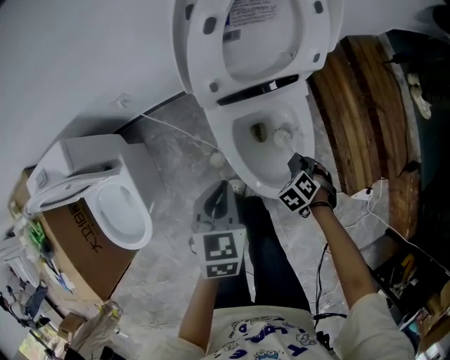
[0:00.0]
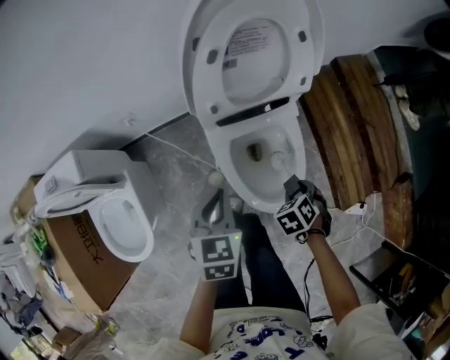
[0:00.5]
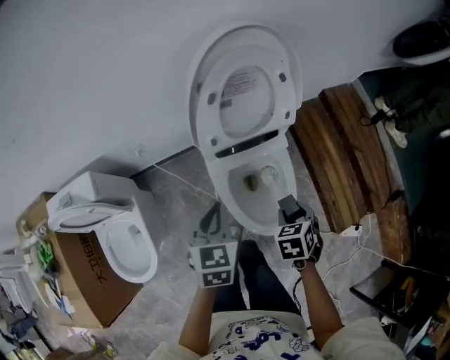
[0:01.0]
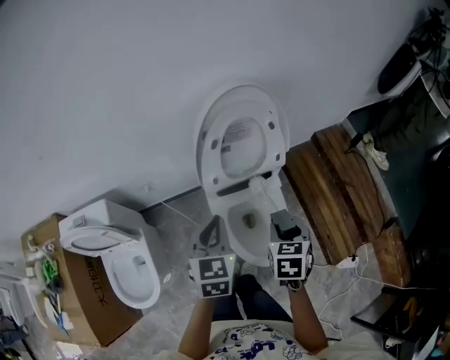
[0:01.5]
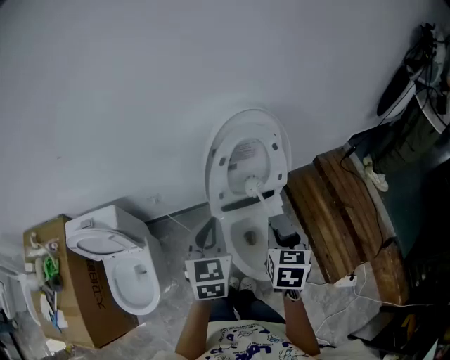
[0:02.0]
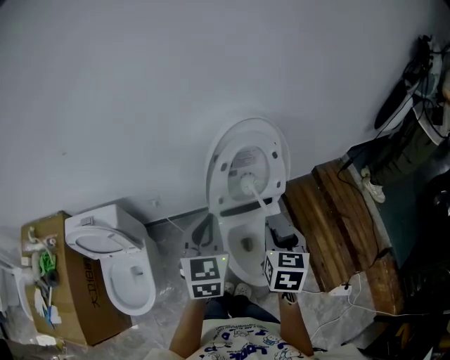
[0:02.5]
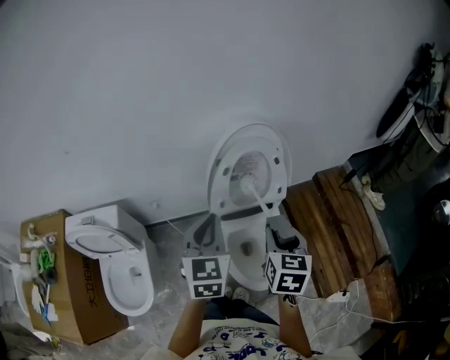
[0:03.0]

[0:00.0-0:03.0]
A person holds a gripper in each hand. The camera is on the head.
0:00.0 to 0:01.5: The right gripper heads upward, covering about 35 cm, and rolls clockwise, seen from behind, by about 50 degrees, while the left gripper heads upward, covering approximately 20 cm.
0:01.5 to 0:03.0: The grippers both shift upward by some 10 cm.

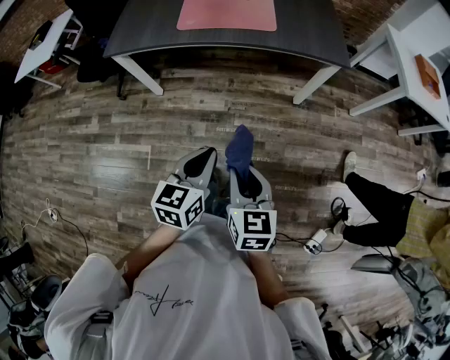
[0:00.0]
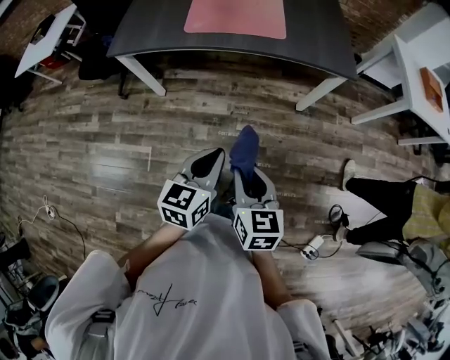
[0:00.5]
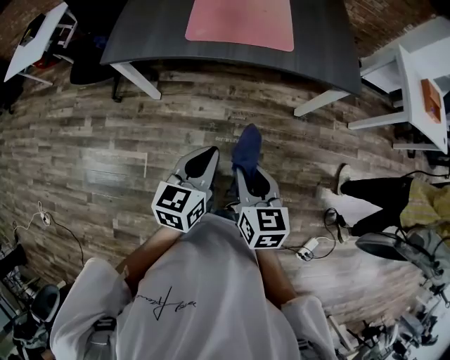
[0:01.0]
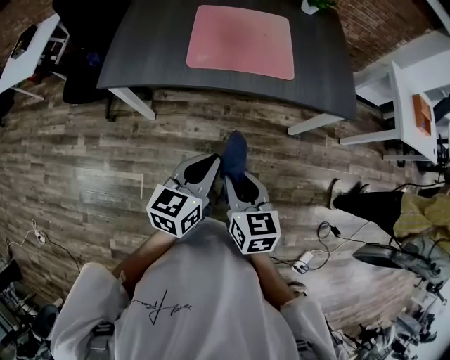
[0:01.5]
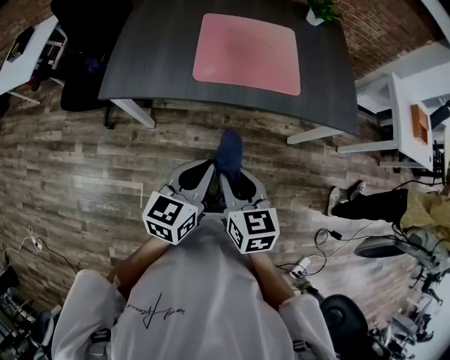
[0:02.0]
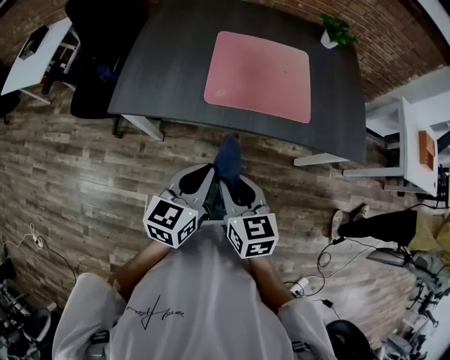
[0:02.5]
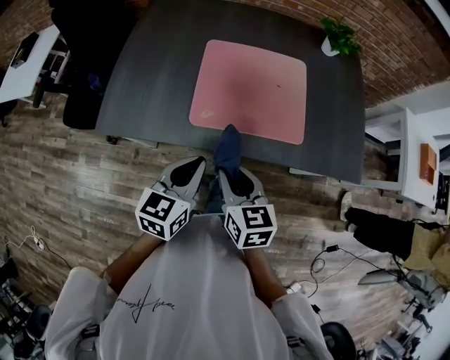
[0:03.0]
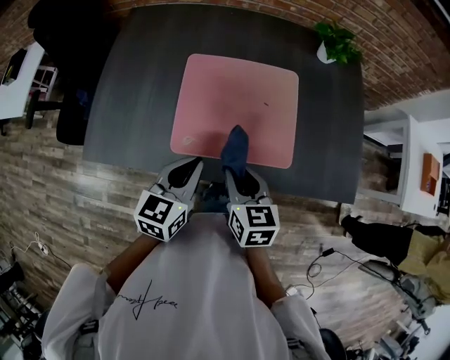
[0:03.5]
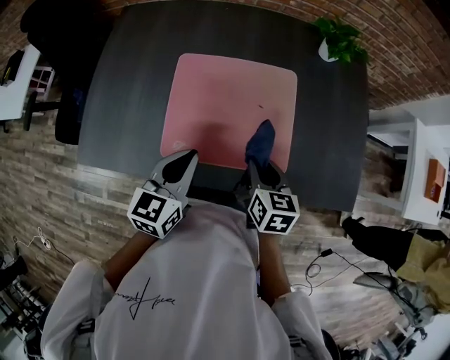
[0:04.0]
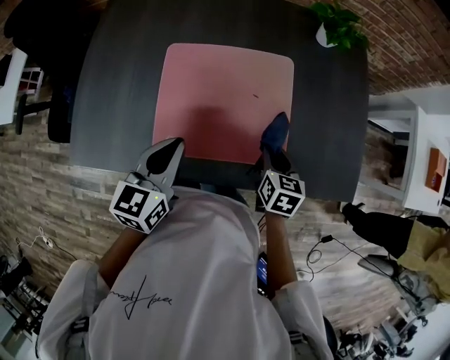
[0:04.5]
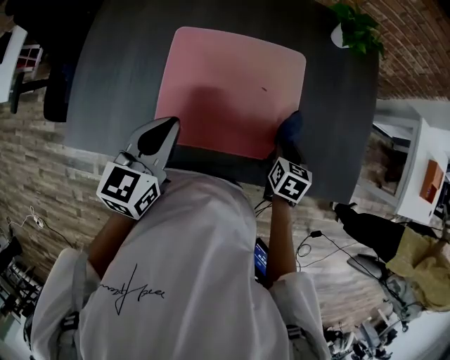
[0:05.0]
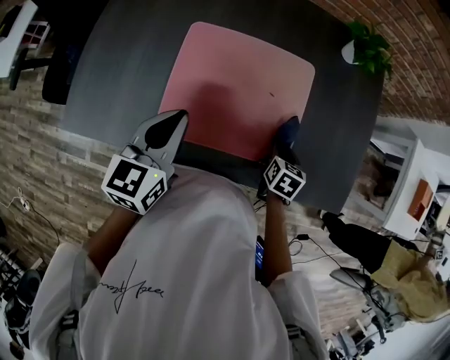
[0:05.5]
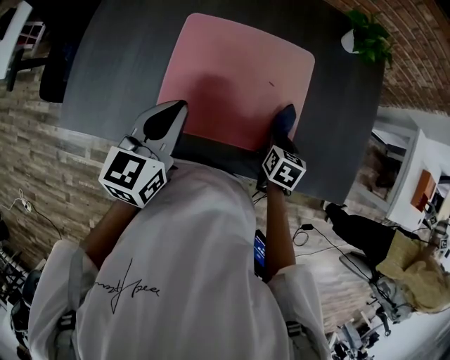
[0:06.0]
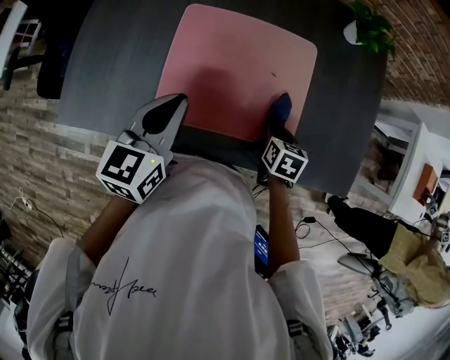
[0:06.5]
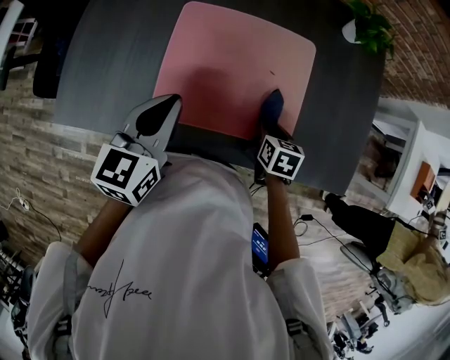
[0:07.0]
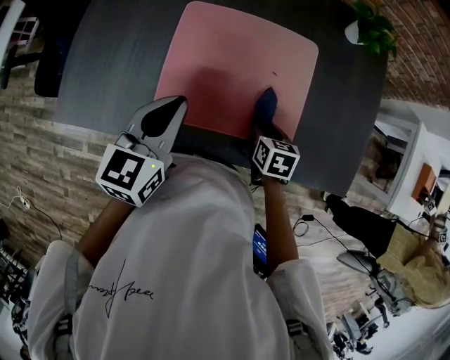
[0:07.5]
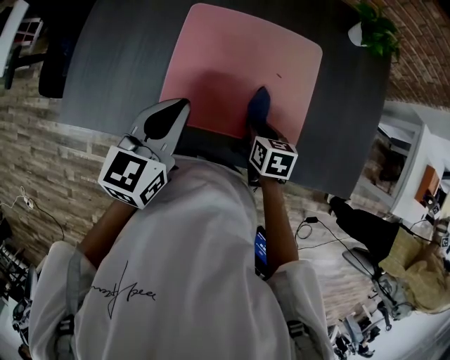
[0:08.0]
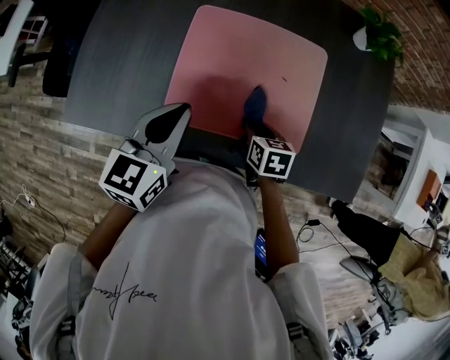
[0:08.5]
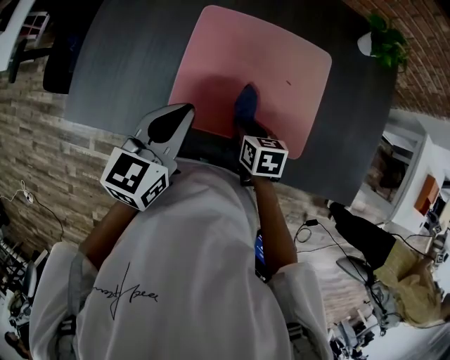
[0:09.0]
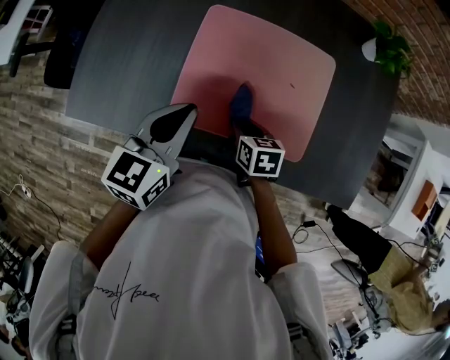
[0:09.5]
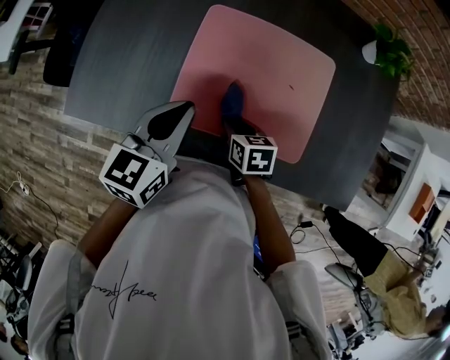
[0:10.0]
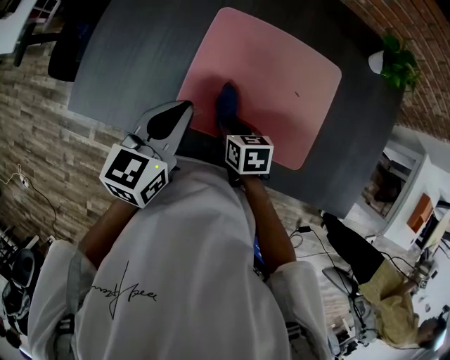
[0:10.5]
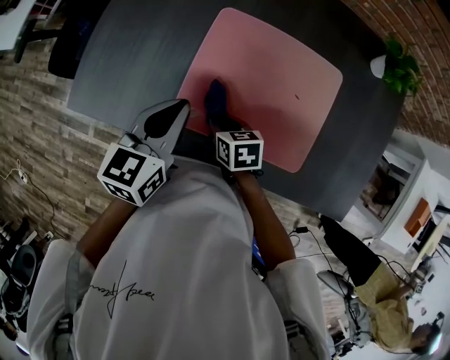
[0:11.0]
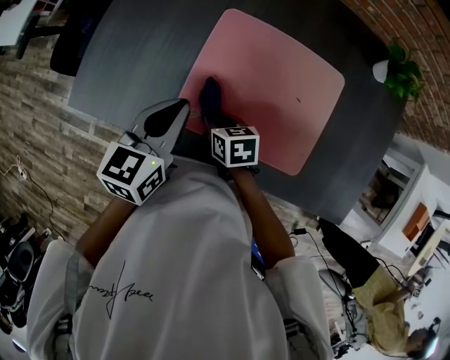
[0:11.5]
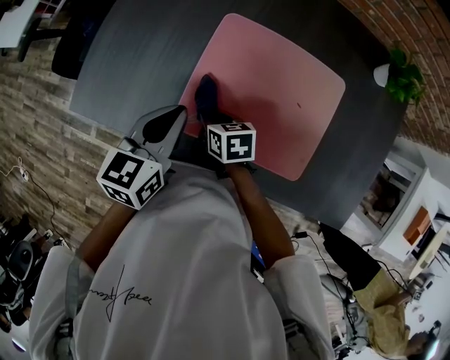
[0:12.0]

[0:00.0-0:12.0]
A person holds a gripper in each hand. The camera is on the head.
0:00.0 to 0:02.0: Both grippers travel together forward and to the left, approximately 30 cm.
0:02.0 to 0:04.0: The right gripper goes roughly 40 cm forward and to the right, while the left gripper goes approximately 35 cm forward.
0:04.0 to 0:06.0: The right gripper heads downward and to the right, covering about 15 cm, and changes its angle by about 20 degrees. The left gripper moves to the left, some 5 cm.
0:06.0 to 0:08.0: The right gripper heads to the left, covering approximately 10 cm.
0:08.0 to 0:10.0: The right gripper moves to the left, approximately 10 cm.
0:10.0 to 0:12.0: The right gripper goes approximately 10 cm to the left and forward.

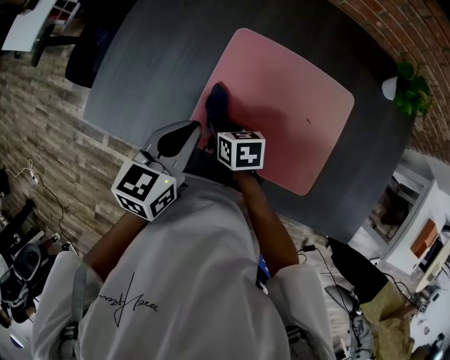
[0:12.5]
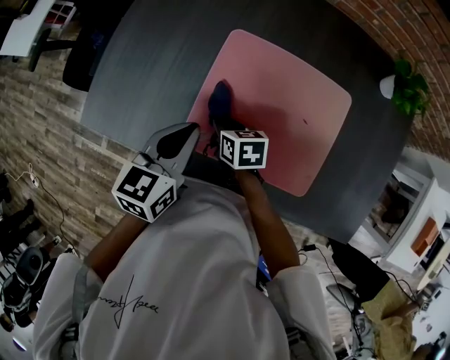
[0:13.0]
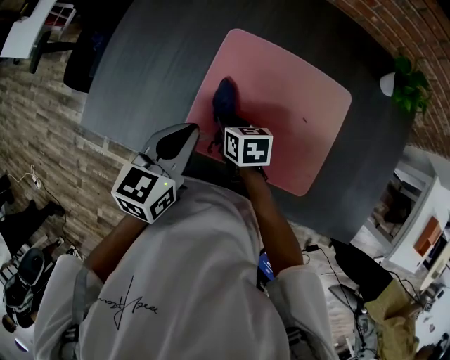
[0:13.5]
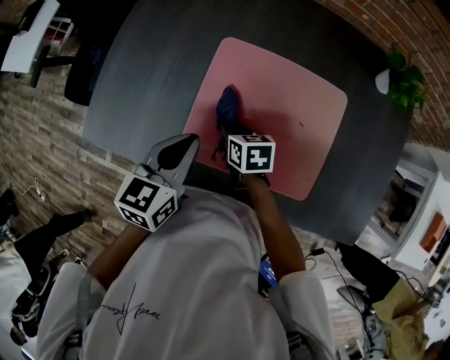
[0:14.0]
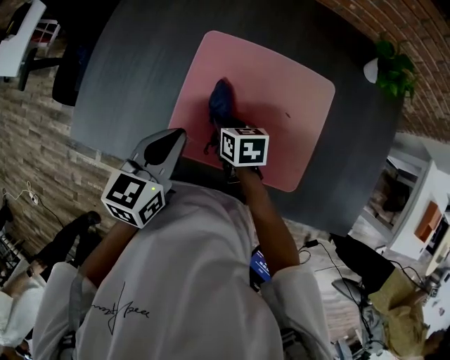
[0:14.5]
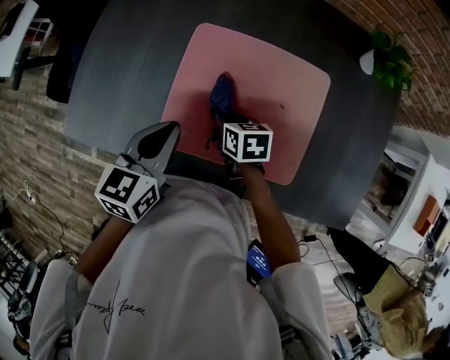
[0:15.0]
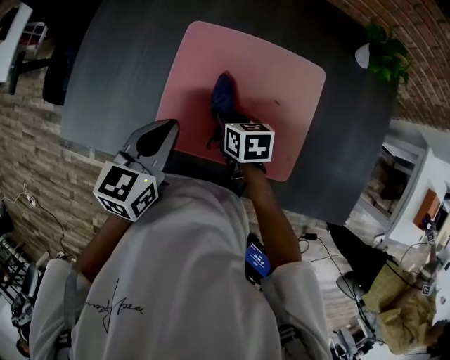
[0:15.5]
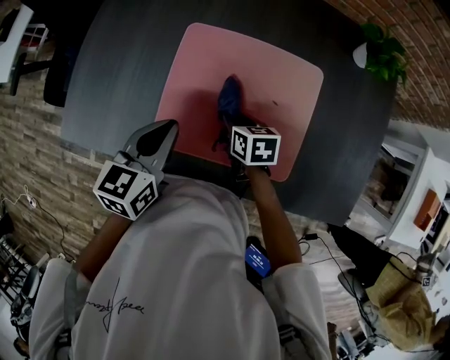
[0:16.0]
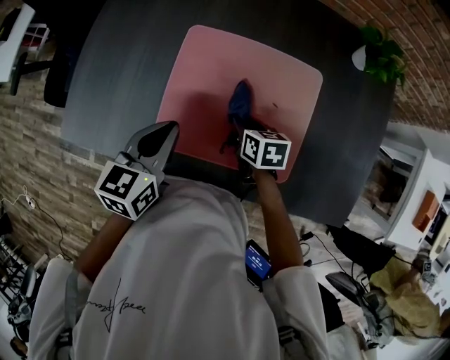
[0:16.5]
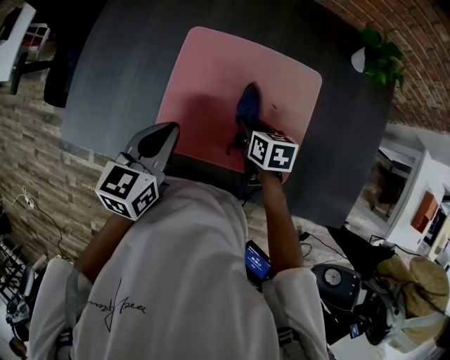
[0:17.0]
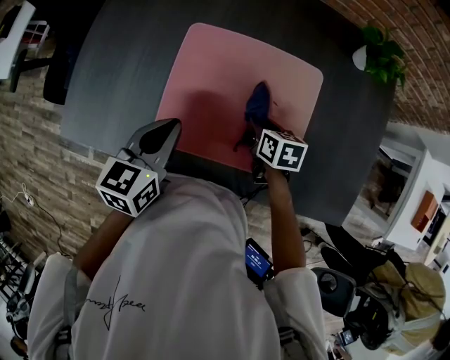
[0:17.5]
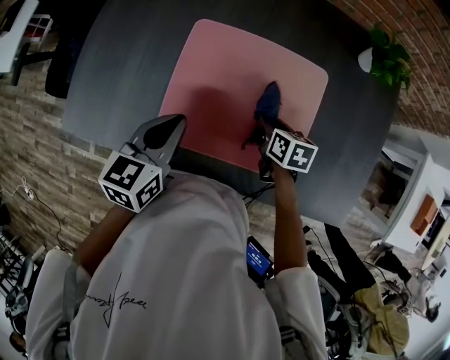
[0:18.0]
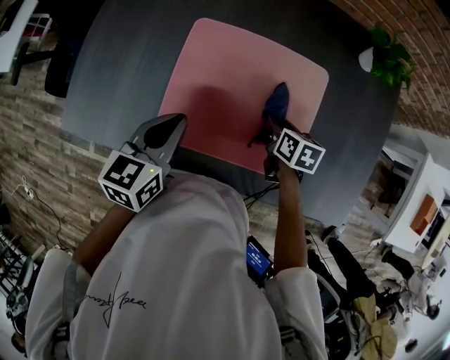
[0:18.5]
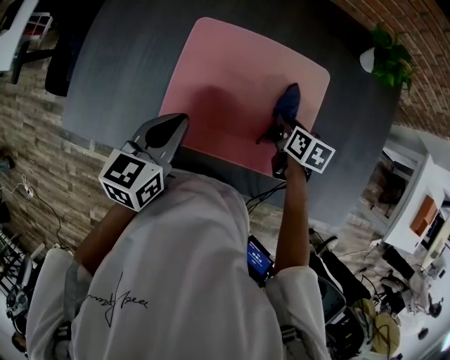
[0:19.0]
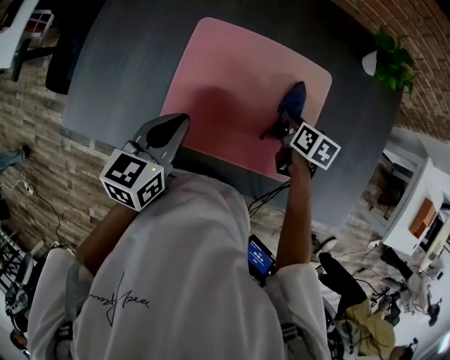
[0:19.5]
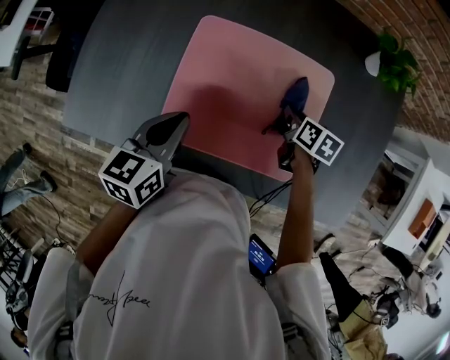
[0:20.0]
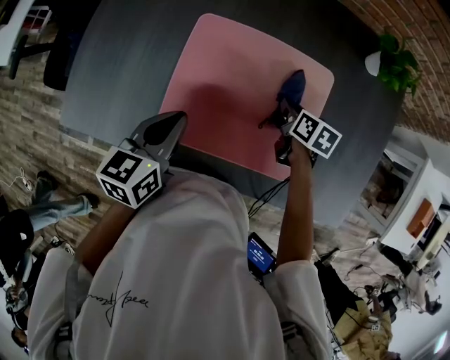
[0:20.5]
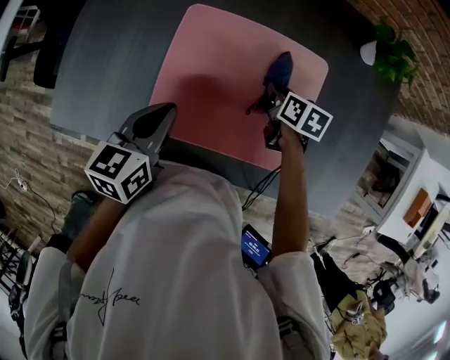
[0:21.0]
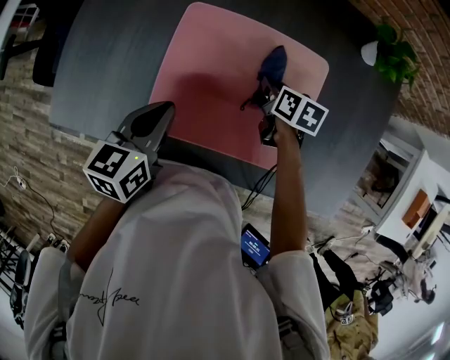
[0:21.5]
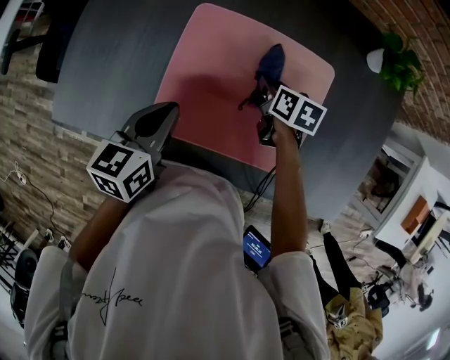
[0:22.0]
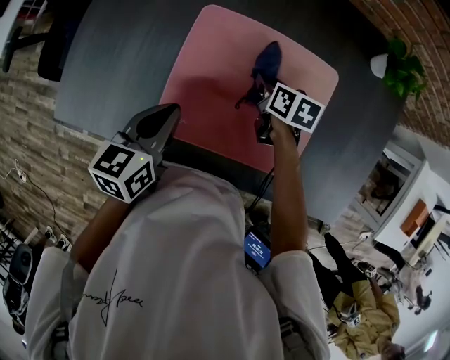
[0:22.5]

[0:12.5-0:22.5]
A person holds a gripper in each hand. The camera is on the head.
0:12.5 to 0:14.5: The right gripper goes roughly 5 cm to the right.
0:14.5 to 0:16.5: The right gripper travels to the right by some 10 cm.
0:16.5 to 0:18.5: The right gripper moves to the right, approximately 10 cm.
0:18.5 to 0:20.5: The right gripper goes roughly 5 cm forward.
0:20.5 to 0:22.5: The right gripper travels to the left by about 10 cm.

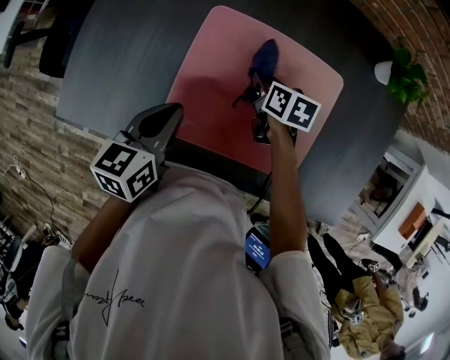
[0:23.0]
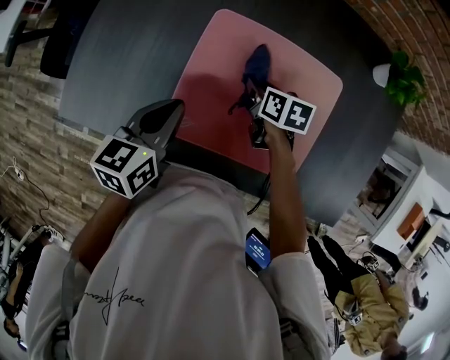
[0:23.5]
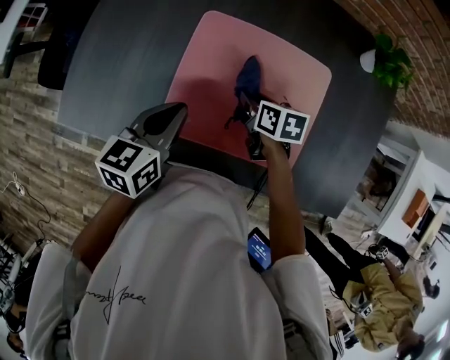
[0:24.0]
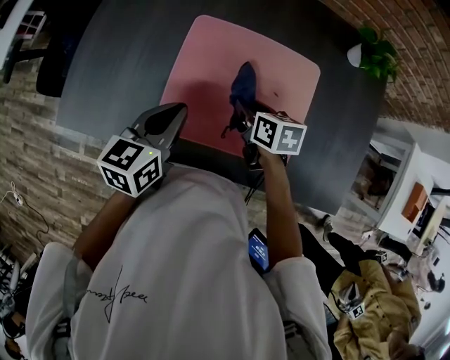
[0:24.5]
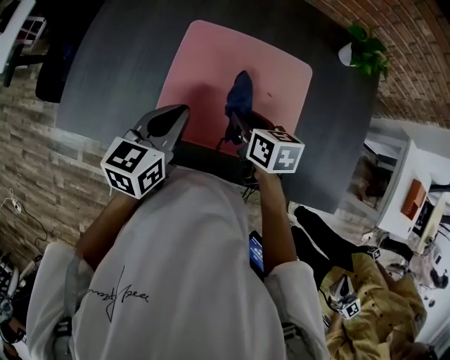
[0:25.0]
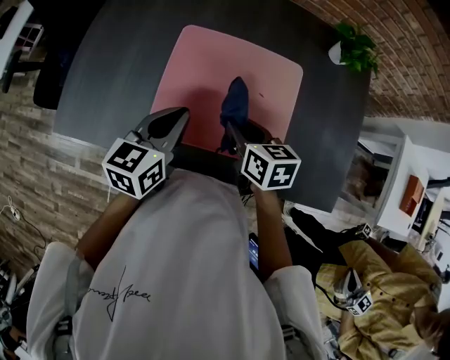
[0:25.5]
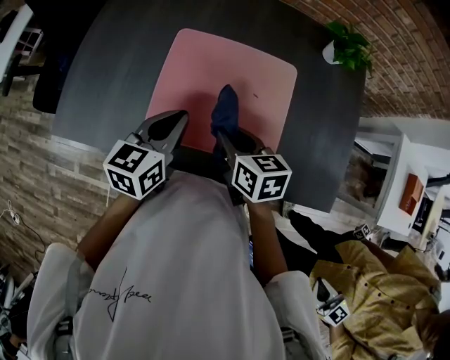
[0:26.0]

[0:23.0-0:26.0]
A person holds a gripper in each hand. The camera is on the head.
0:23.0 to 0:24.5: The left gripper shifts by roughly 5 cm; the right gripper travels backward and upward by some 10 cm.
0:24.5 to 0:26.0: The right gripper heads backward and upward, covering some 10 cm, while the left gripper moves approximately 5 cm.
